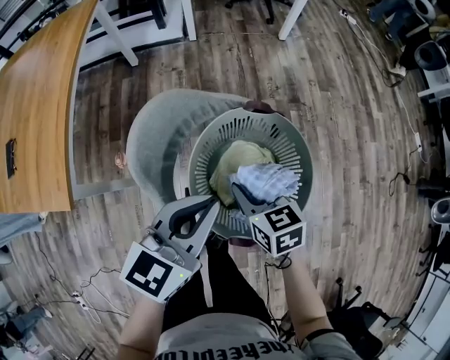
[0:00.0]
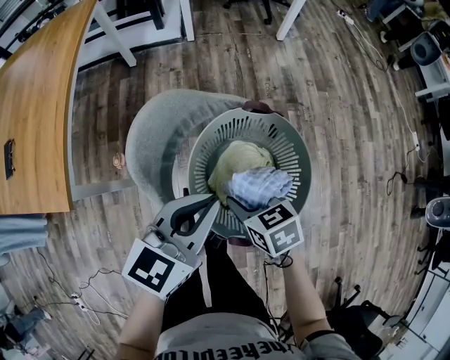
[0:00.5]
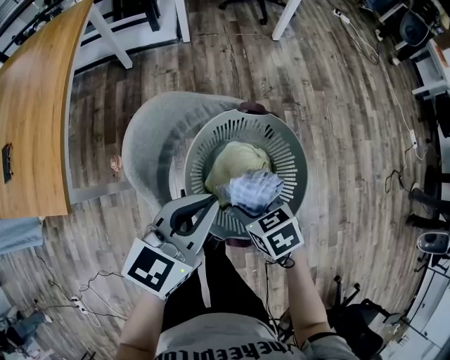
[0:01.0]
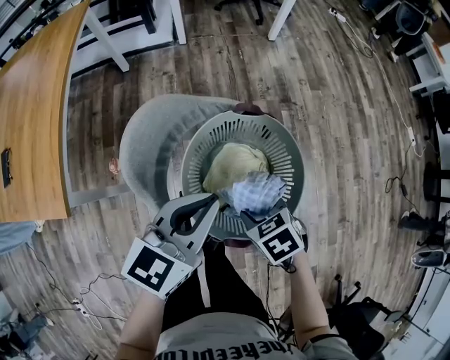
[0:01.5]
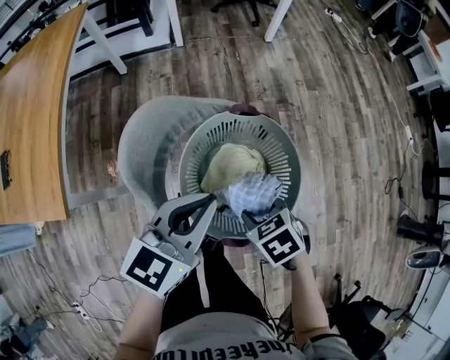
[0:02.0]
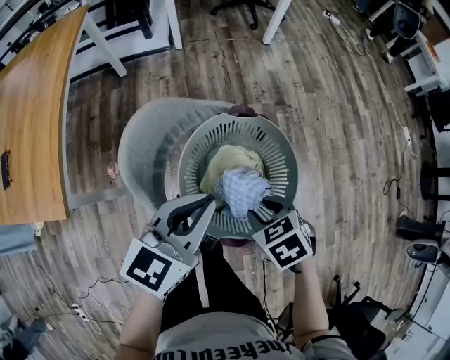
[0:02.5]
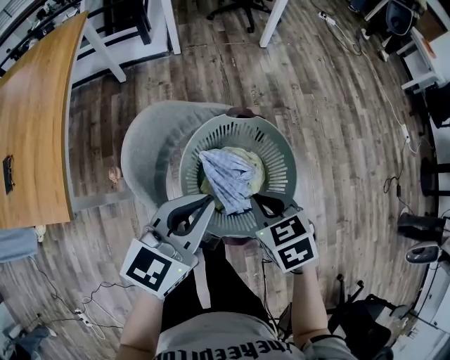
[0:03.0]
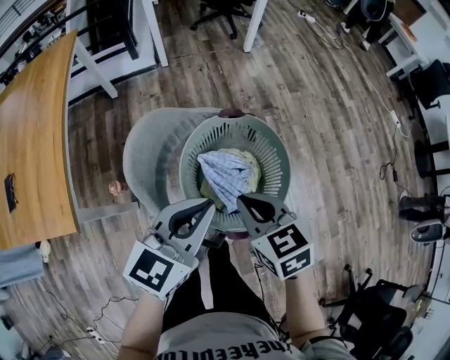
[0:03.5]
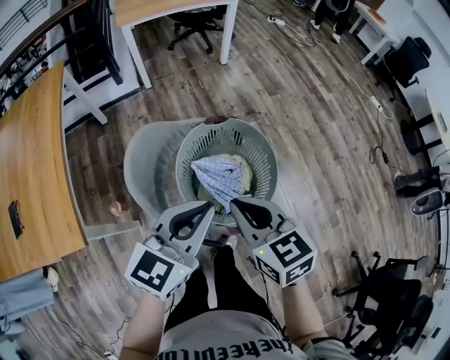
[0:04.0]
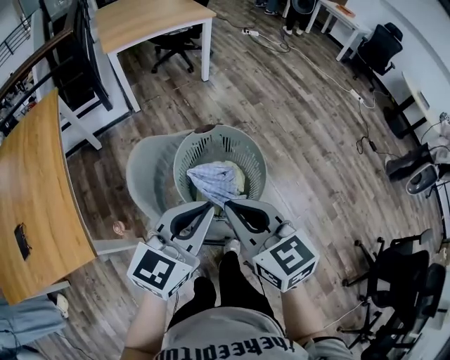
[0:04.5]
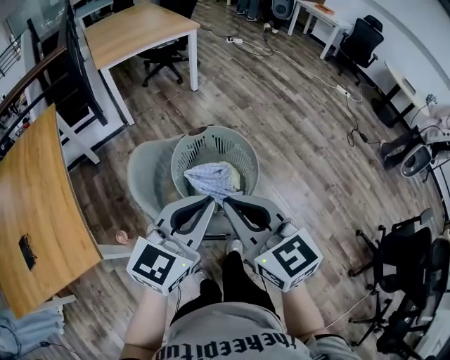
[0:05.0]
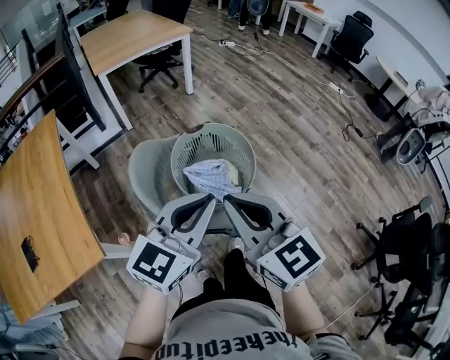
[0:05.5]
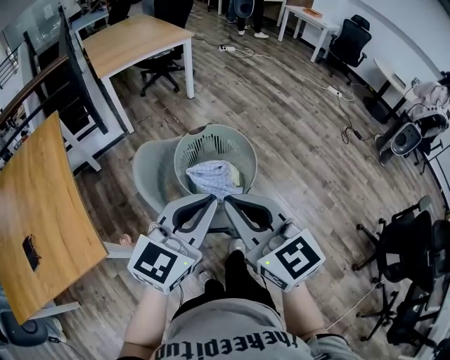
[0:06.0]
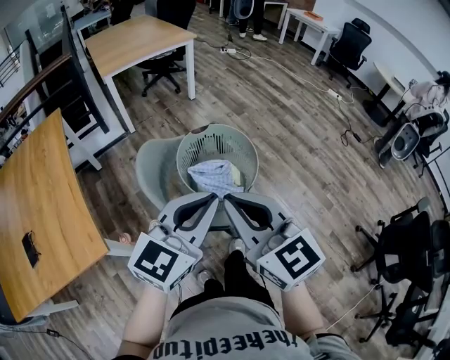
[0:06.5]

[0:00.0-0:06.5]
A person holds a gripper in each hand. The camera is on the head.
0:00.0 to 0:02.0: The right gripper goes about 5 cm backward, and turns by some 30 degrees.
0:02.0 to 0:04.5: The right gripper moves upward, roughly 25 cm, tilts its fingers some 50 degrees upward, and closes, while the left gripper is displaced upward by approximately 10 cm, and rotates roughly 20 degrees.
0:04.5 to 0:06.5: The two grippers go about 10 cm backward and upward.

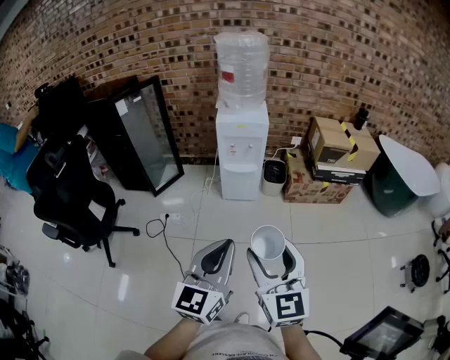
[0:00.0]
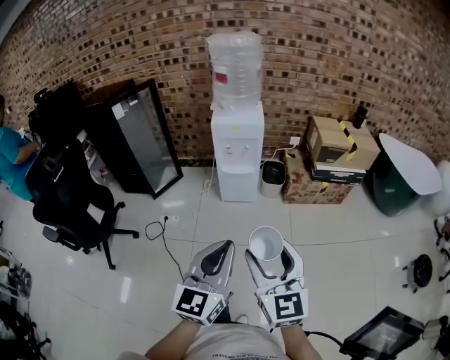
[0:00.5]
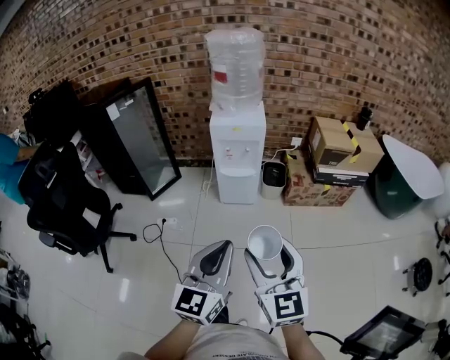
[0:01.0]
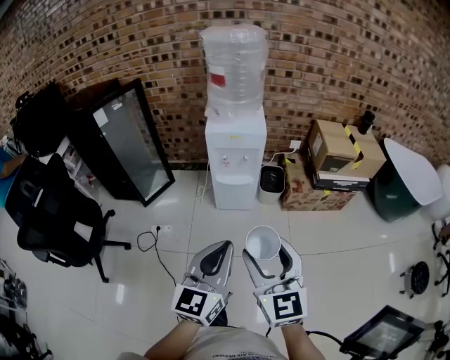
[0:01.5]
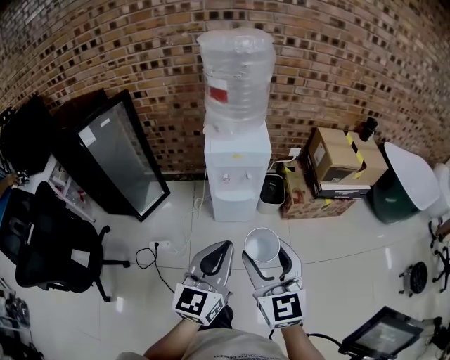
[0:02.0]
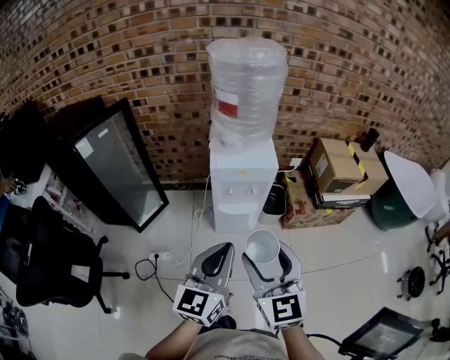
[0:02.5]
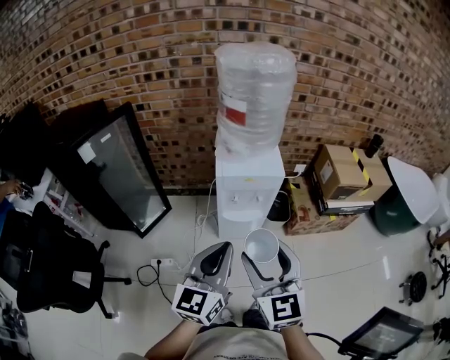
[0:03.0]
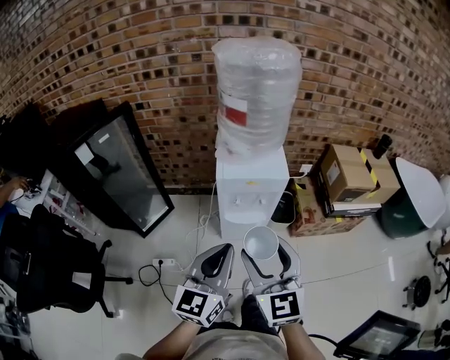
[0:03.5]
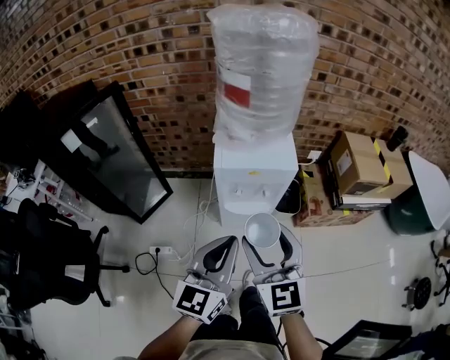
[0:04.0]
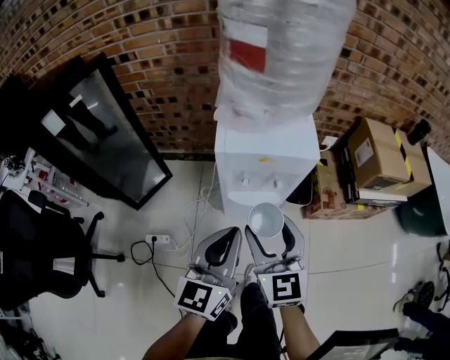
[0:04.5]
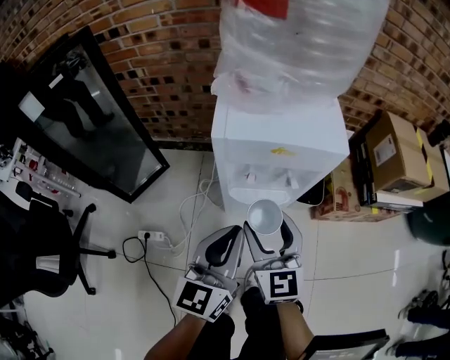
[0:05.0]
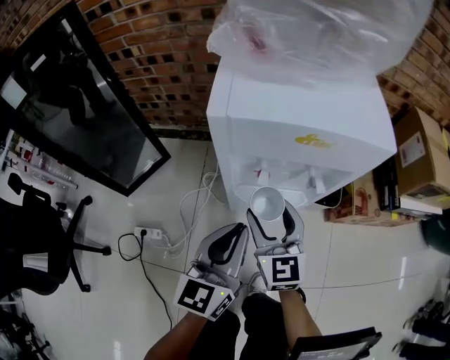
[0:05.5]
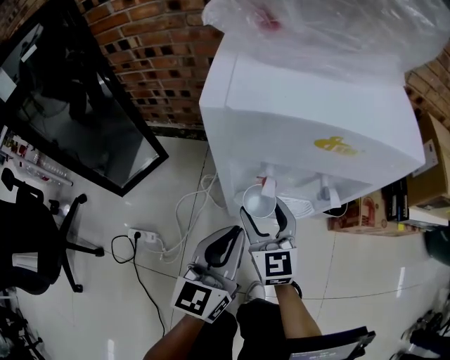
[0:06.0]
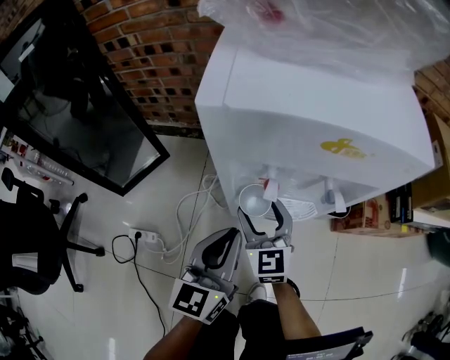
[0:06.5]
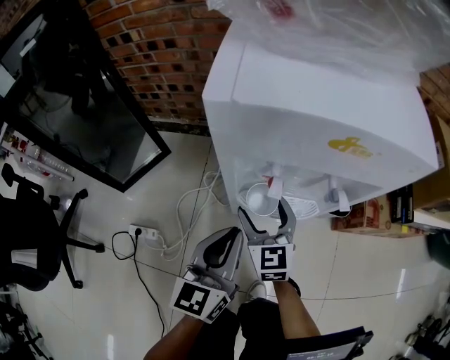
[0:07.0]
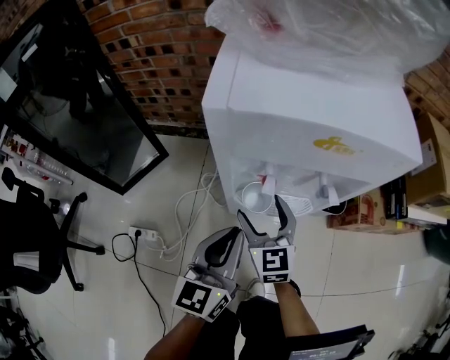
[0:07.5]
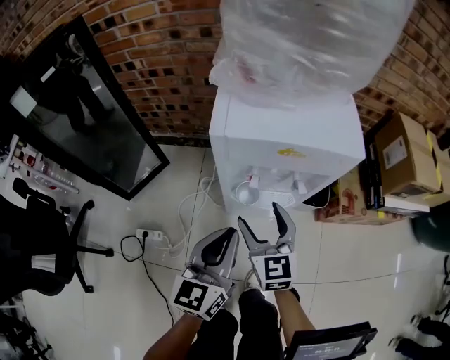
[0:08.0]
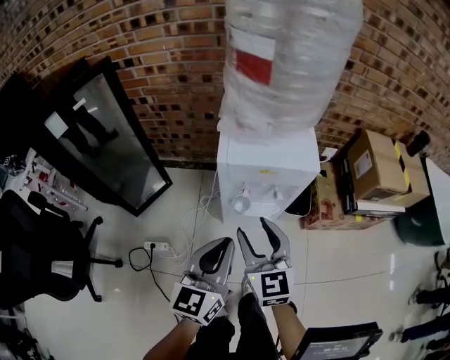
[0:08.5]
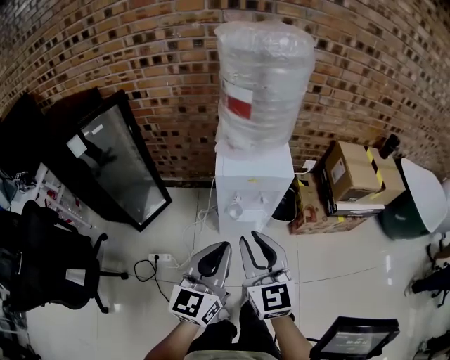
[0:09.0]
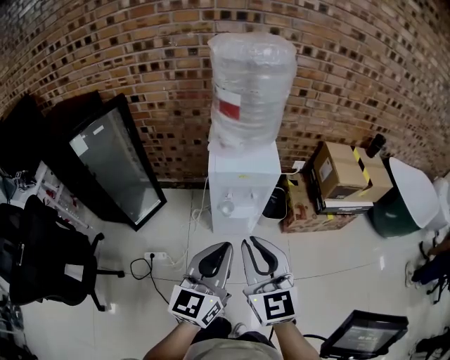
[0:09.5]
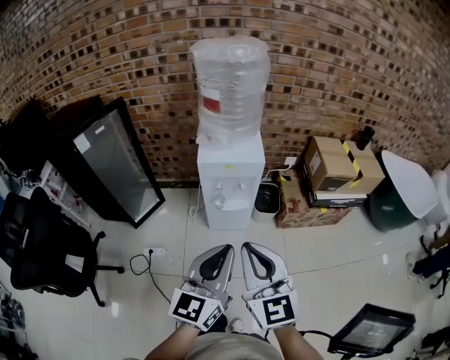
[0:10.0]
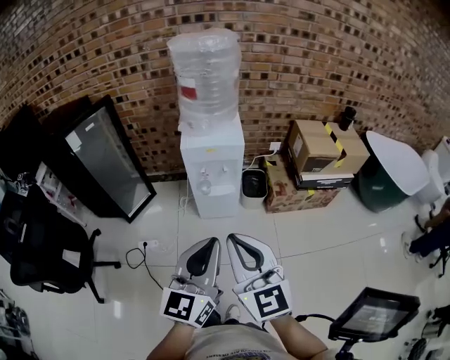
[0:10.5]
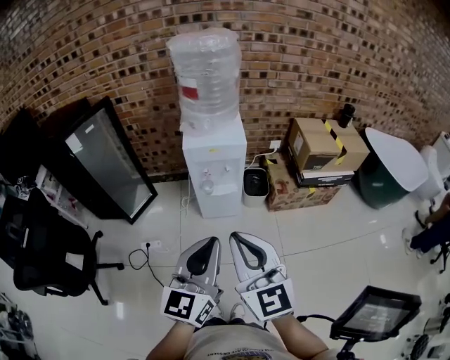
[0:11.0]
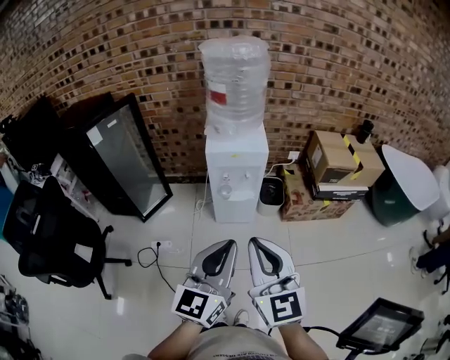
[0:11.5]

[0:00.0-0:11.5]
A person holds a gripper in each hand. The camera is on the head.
0:00.0 to 0:02.0: Both grippers travel together forward, some 25 cm.
0:02.0 to 0:04.0: Both grippers travel together forward, some 20 cm.
0:04.0 to 0:06.0: Both grippers move downward and forward, about 40 cm.
0:06.0 to 0:07.5: The grippers move only a little.
0:07.5 to 0:09.5: The grippers both shift upward and backward by about 50 cm. The right gripper closes.
0:09.5 to 0:11.5: Both grippers travel together backward, approximately 15 cm.

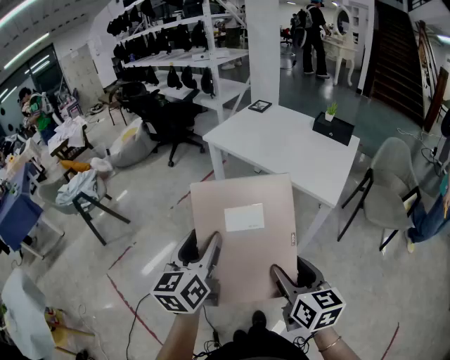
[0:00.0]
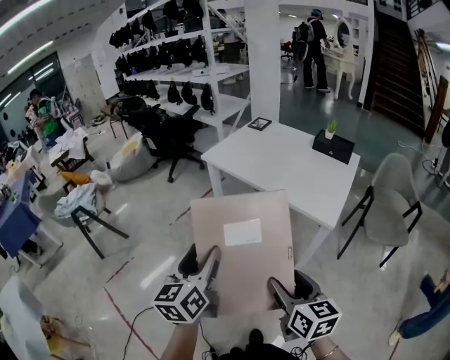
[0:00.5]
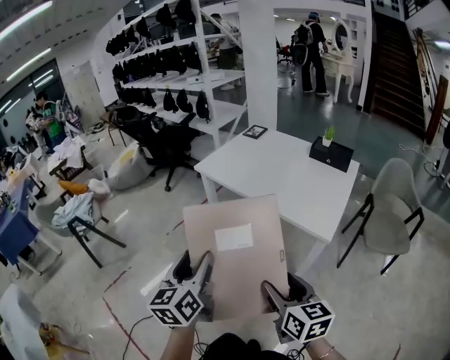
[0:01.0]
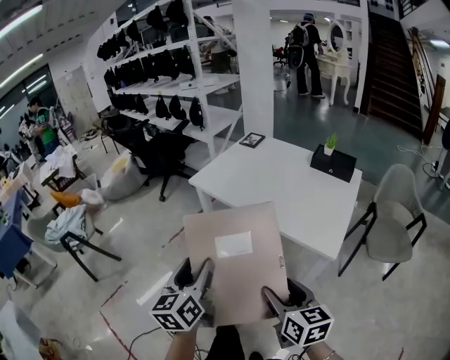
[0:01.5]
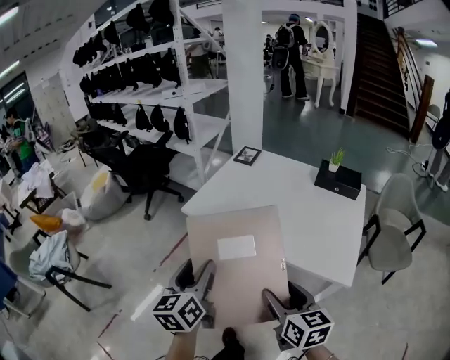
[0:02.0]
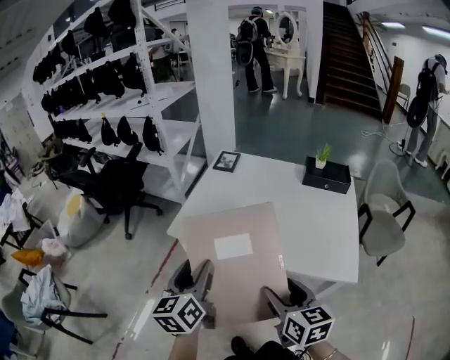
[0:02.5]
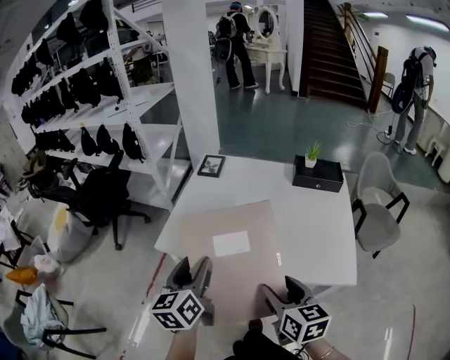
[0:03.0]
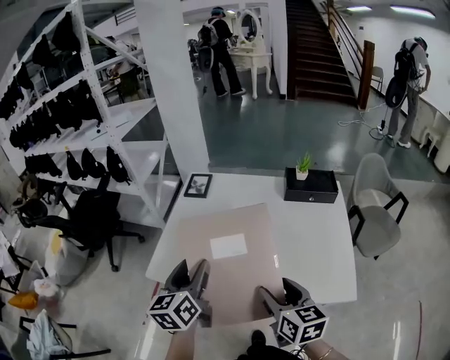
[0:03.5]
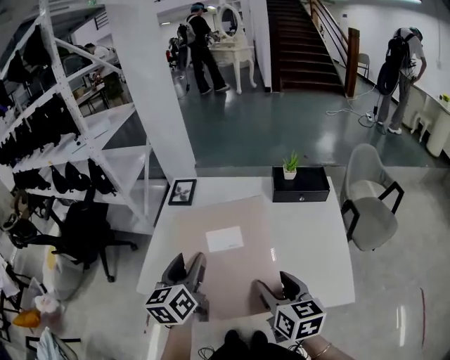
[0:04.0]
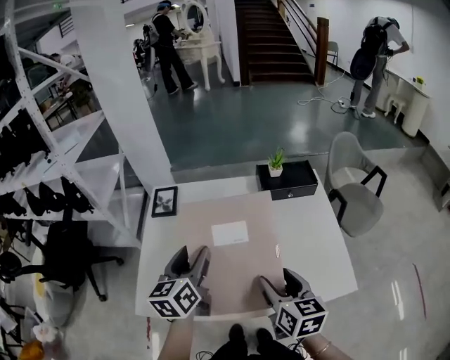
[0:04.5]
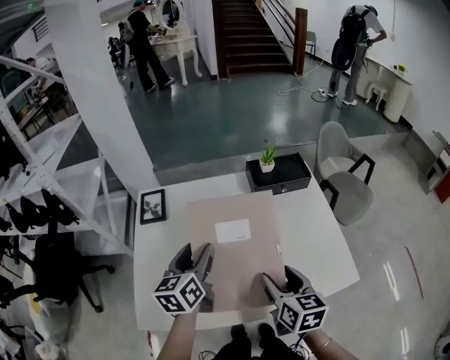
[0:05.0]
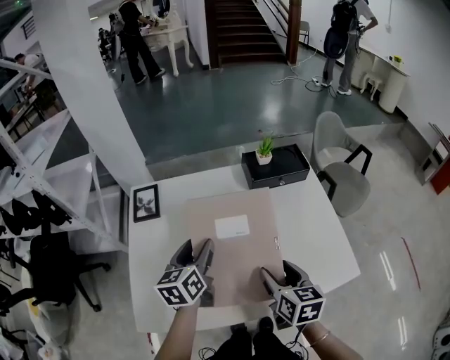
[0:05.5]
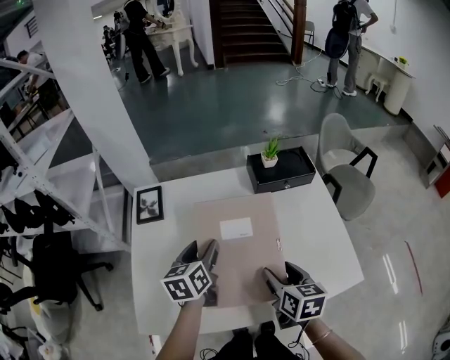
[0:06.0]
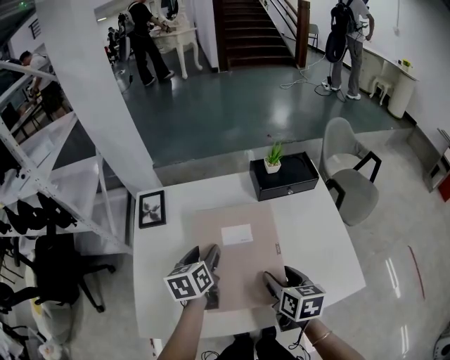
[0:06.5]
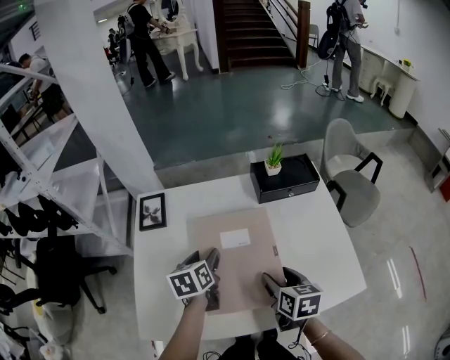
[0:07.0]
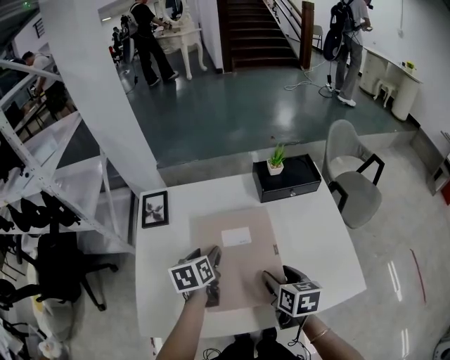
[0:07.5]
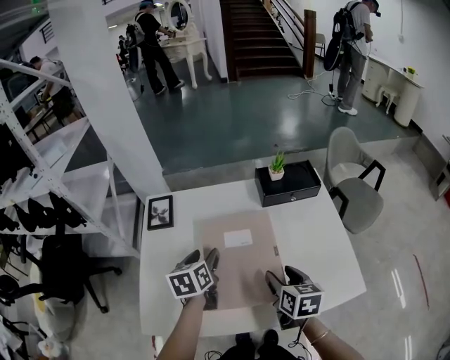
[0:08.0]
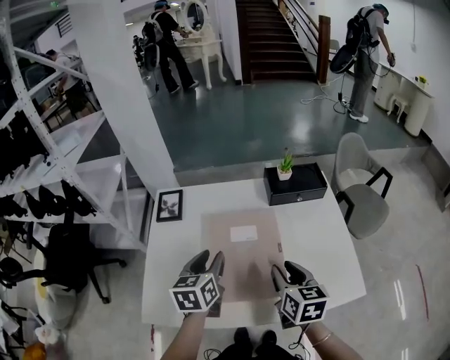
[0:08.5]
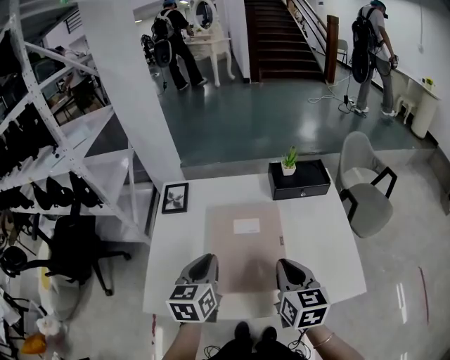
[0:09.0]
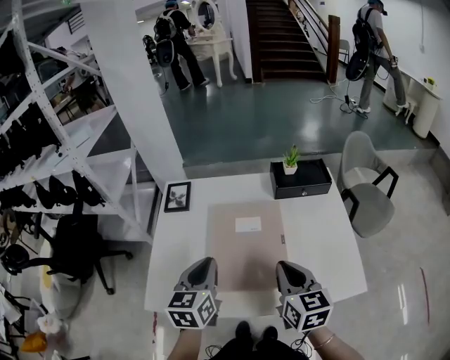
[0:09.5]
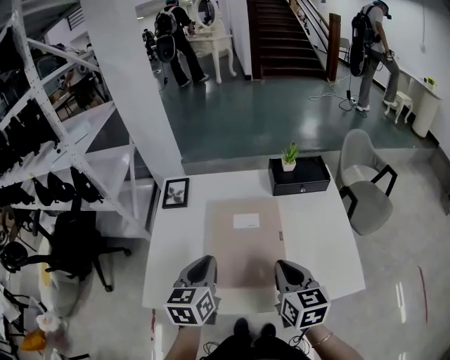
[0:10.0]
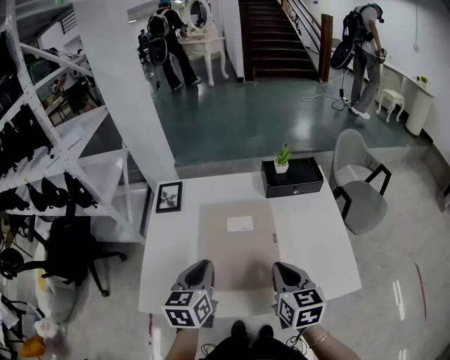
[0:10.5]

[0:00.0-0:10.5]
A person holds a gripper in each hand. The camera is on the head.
0:00.0 to 0:02.0: The grippers both shift forward by approximately 35 cm.
0:02.0 to 0:04.0: Both grippers move forward, about 30 cm. The left gripper swivels roughly 20 degrees. Meanwhile the right gripper changes its angle by about 20 degrees.
0:04.0 to 0:06.5: The left gripper shifts about 20 cm forward and downward, and changes its angle by about 30 degrees, while the right gripper heads downward and forward, covering about 15 cm, and swivels some 20 degrees.
0:06.5 to 0:08.5: The right gripper heads upward, covering some 5 cm, and closes its fingers, while the left gripper goes roughly 10 cm upward and backward.
0:08.5 to 0:10.5: The right gripper closes its fingers; the left gripper is displaced backward by roughly 5 cm, and closes up.
